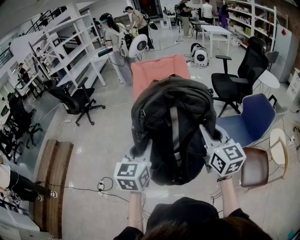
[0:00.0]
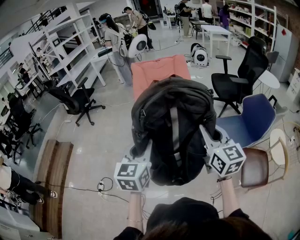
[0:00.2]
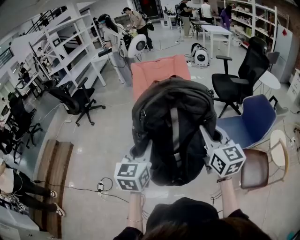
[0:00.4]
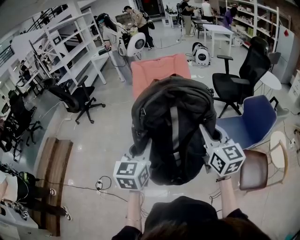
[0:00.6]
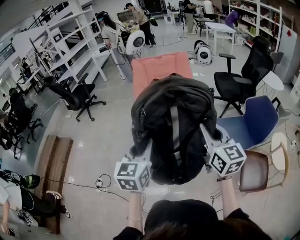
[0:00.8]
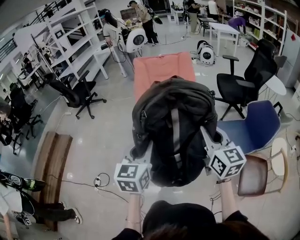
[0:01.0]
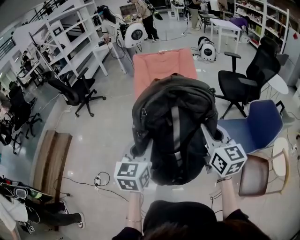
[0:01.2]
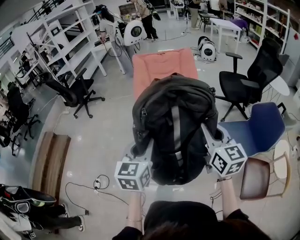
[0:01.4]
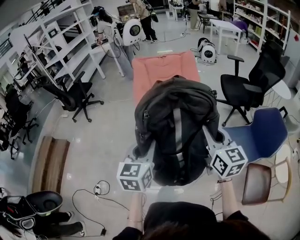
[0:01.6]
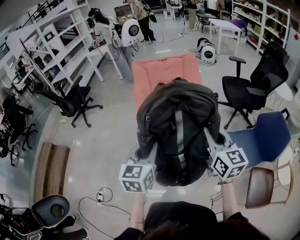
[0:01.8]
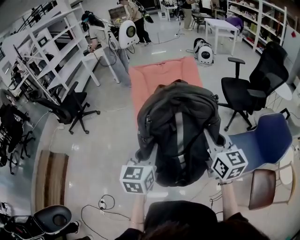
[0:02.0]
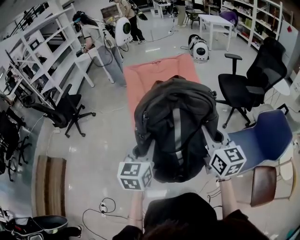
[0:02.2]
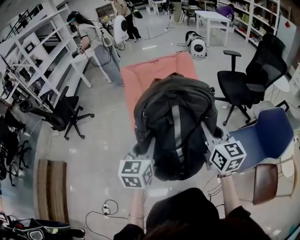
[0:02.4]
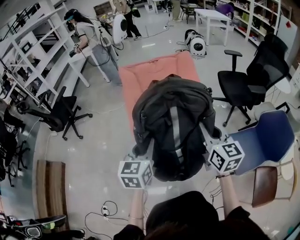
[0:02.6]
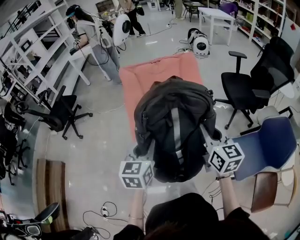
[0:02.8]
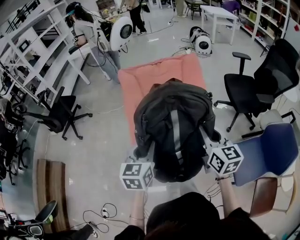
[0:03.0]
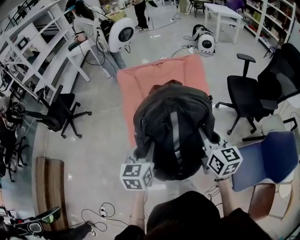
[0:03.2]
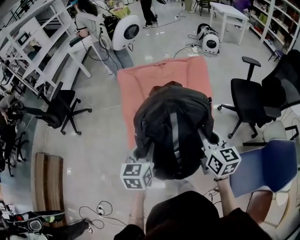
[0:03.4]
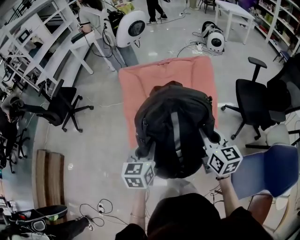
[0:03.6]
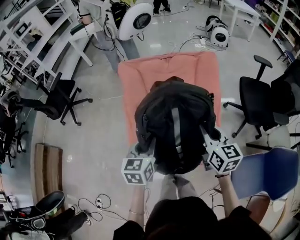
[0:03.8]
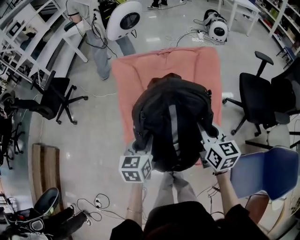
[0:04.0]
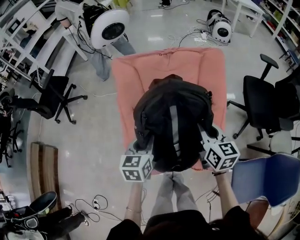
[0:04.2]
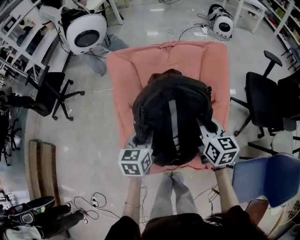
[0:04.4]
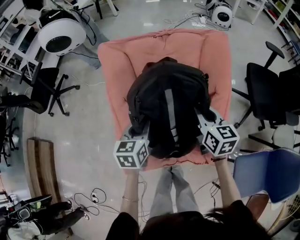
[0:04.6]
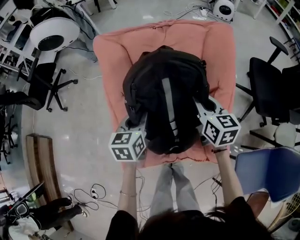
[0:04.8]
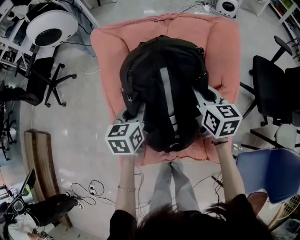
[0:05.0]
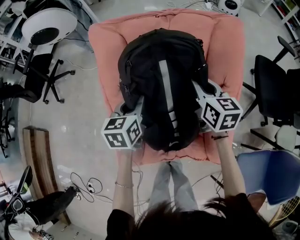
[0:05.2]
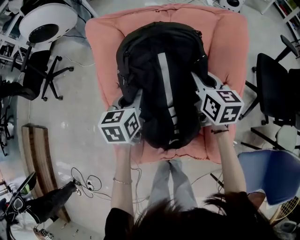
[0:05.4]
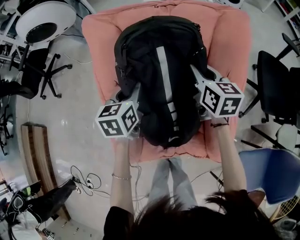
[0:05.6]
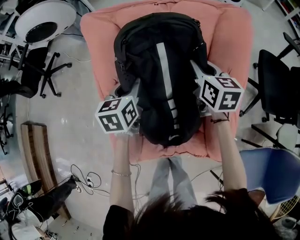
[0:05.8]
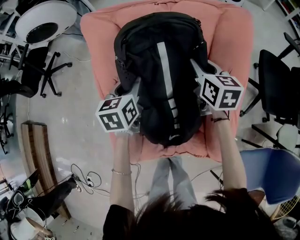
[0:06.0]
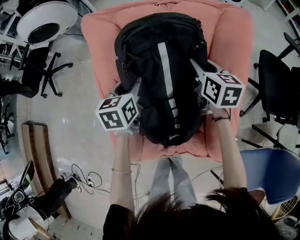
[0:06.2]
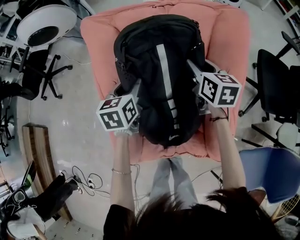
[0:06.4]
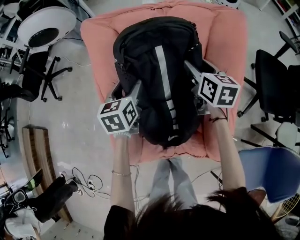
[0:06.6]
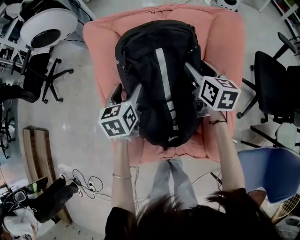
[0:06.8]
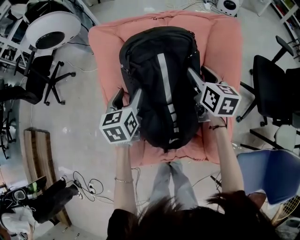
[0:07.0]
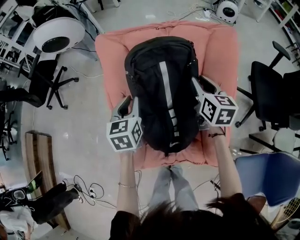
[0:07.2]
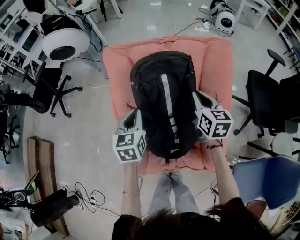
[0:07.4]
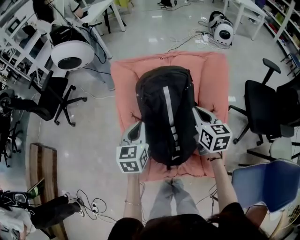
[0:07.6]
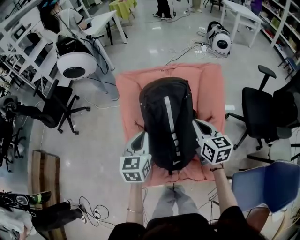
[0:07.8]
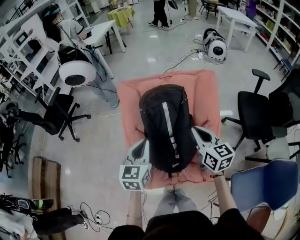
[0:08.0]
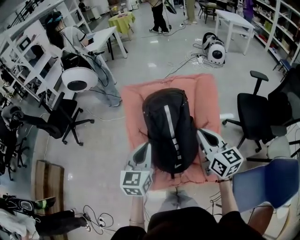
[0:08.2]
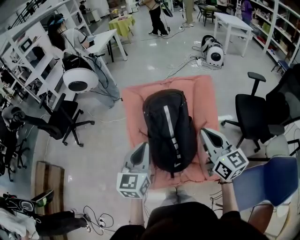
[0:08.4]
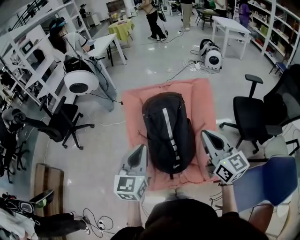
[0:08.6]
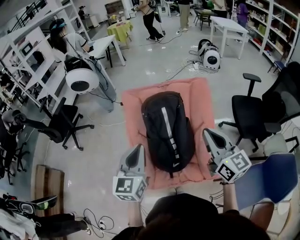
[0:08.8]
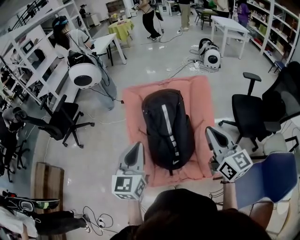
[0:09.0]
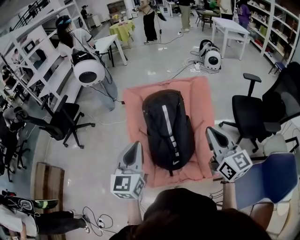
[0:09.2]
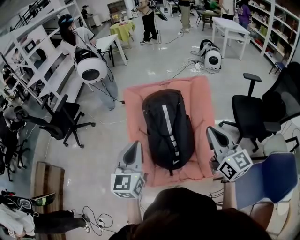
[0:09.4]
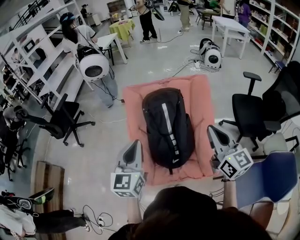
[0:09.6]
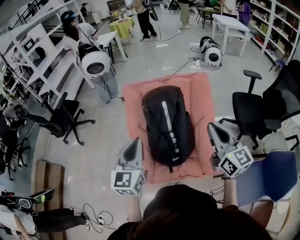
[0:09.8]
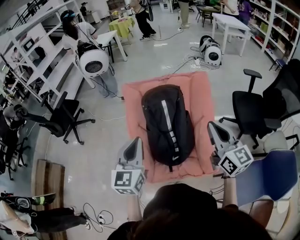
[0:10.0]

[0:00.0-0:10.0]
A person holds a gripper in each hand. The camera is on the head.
0:00.0 to 0:01.4: Both grippers travel together forward, roughly 15 cm.
0:01.4 to 0:02.8: Both grippers travel together forward, some 35 cm.
0:02.8 to 0:04.2: Both grippers move forward and downward, some 35 cm.
0:04.2 to 0:05.8: Both grippers move forward and downward, approximately 25 cm.
0:05.8 to 0:07.2: The right gripper changes place by roughly 5 cm, and opens, then closes again. The left gripper shifts about 5 cm upward, and opens, then closes once more.
0:07.2 to 0:08.6: Both grippers travel together upward and backward, approximately 35 cm. The left gripper rotates about 30 degrees. Meanwhile the right gripper turns by some 30 degrees, and closes its fingers.
0:08.6 to 0:10.0: There are only small adjustments of the grippers.

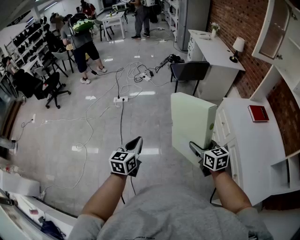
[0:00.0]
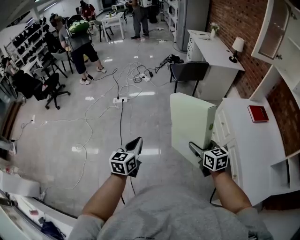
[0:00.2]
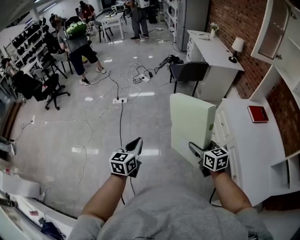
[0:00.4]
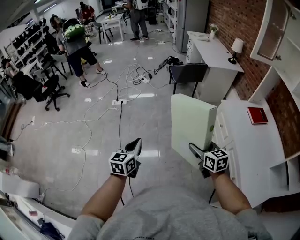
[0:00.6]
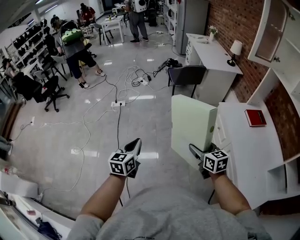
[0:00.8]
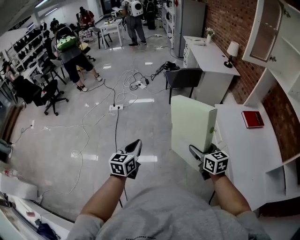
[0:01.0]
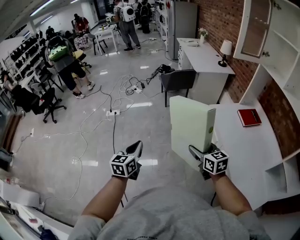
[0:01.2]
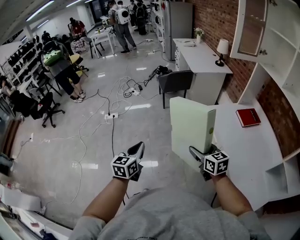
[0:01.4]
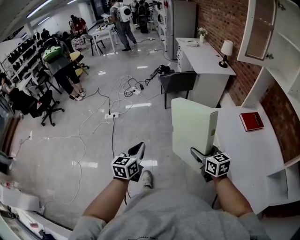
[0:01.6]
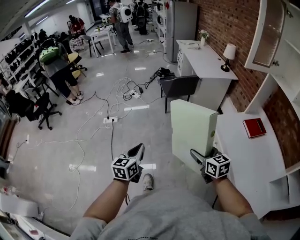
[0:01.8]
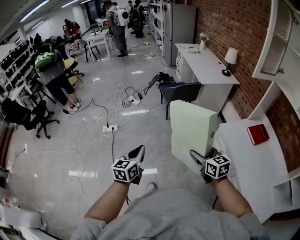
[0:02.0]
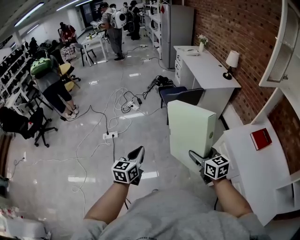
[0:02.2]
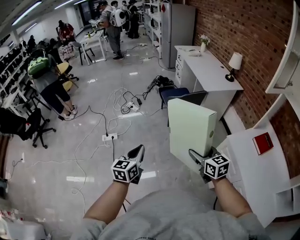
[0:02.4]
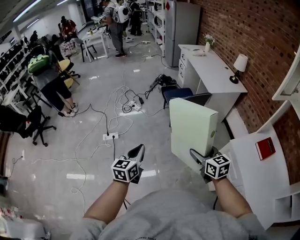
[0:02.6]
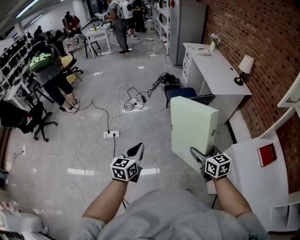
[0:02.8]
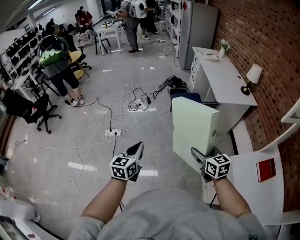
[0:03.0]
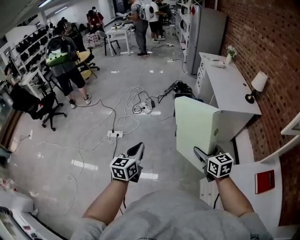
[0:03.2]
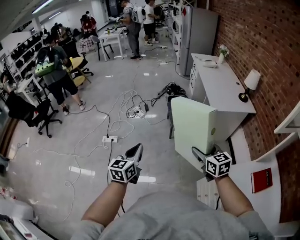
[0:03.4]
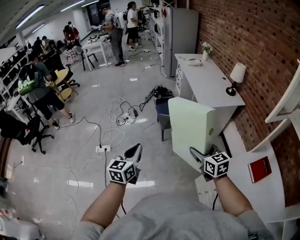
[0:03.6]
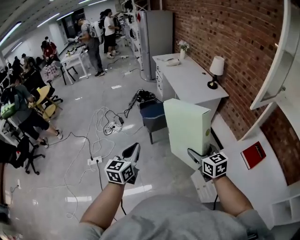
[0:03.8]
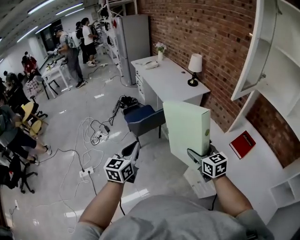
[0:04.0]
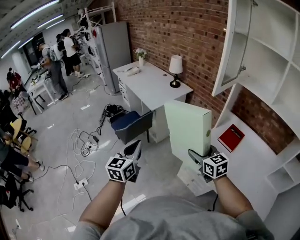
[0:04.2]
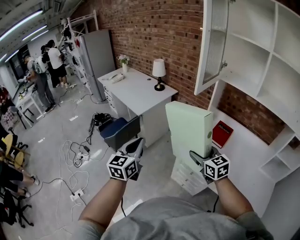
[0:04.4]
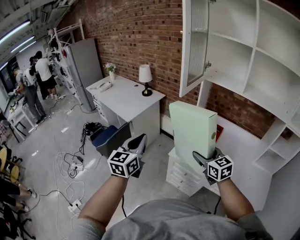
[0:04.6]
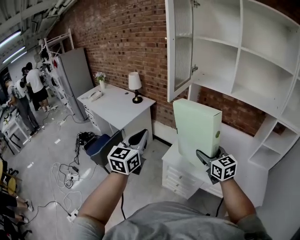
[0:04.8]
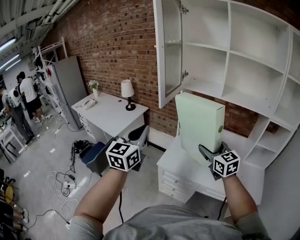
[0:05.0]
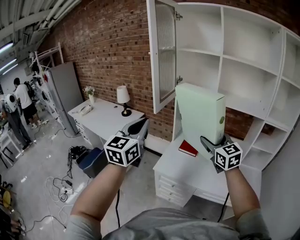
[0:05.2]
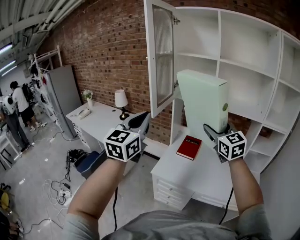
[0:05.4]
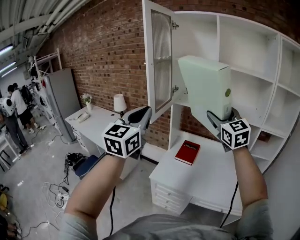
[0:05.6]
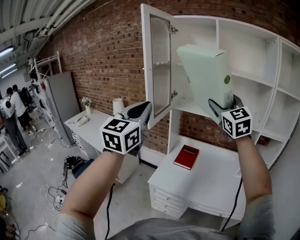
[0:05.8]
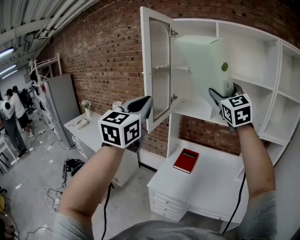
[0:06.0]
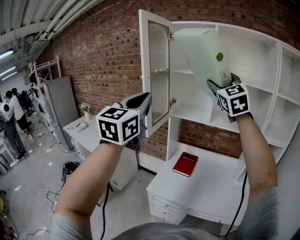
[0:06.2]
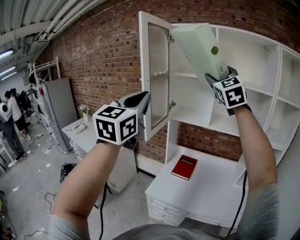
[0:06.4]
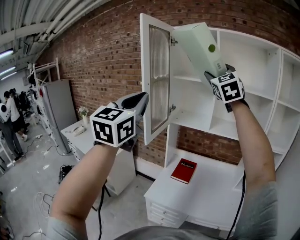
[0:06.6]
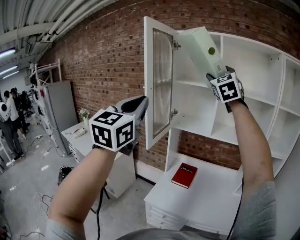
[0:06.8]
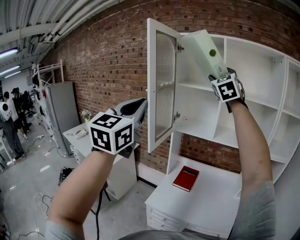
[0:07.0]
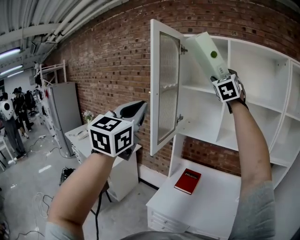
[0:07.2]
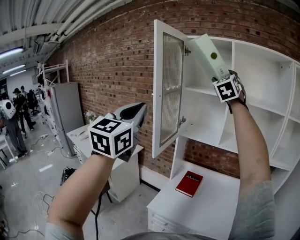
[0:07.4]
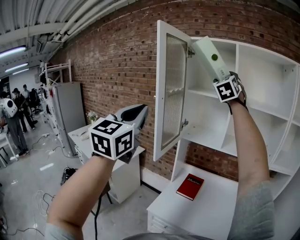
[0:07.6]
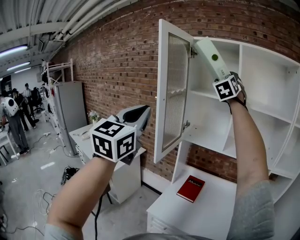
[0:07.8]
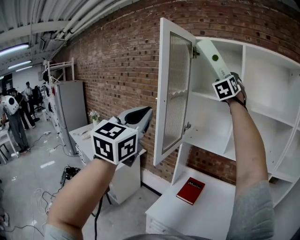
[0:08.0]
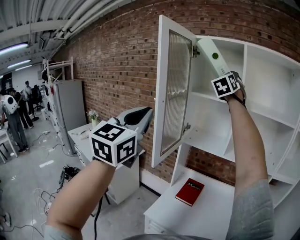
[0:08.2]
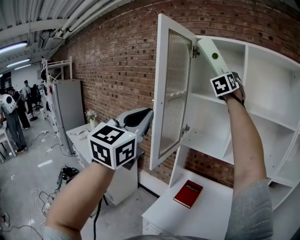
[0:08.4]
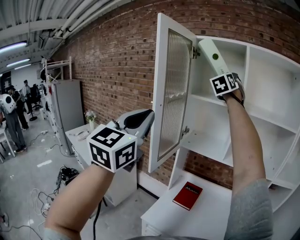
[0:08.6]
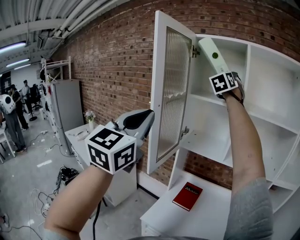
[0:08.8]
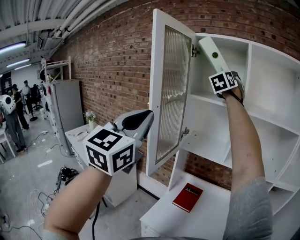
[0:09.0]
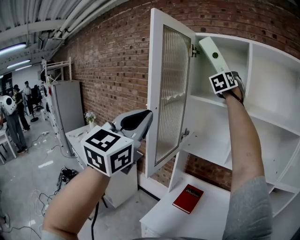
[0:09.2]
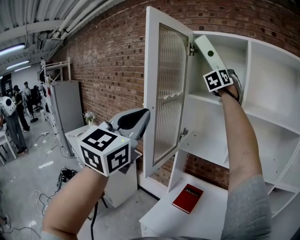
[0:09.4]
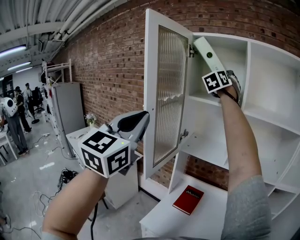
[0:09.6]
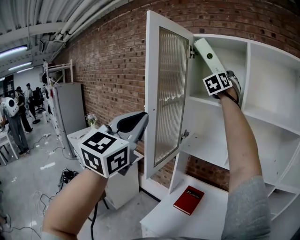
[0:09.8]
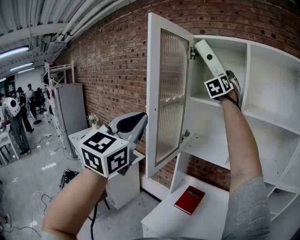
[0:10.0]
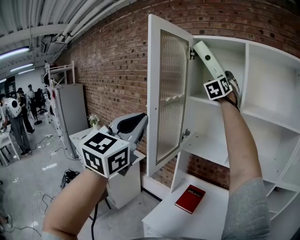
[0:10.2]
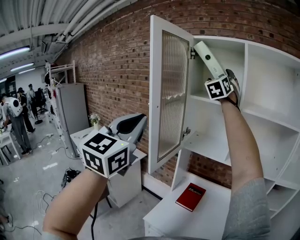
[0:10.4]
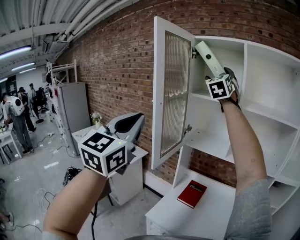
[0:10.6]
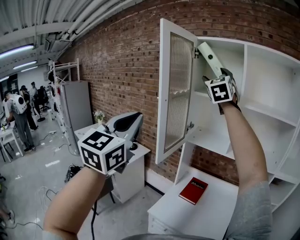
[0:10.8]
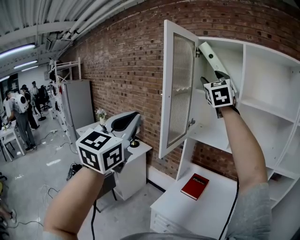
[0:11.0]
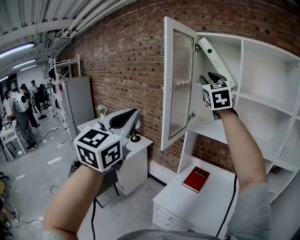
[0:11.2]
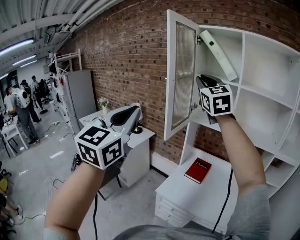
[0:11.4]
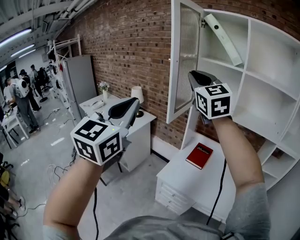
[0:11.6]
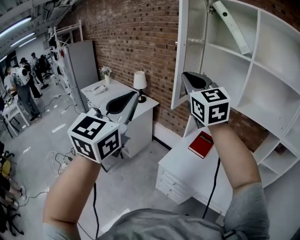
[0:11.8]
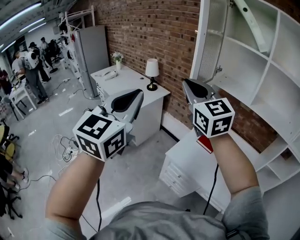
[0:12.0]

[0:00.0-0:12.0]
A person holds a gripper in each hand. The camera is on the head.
0:00.0 to 0:01.6: Both grippers travel together to the right and forward, some 15 cm.
0:01.6 to 0:03.0: The two grippers go about 40 cm forward.
0:03.0 to 0:04.4: The left gripper moves some 40 cm, and swivels approximately 40 degrees. The right gripper changes place by approximately 35 cm, and rotates roughly 40 degrees.
0:04.4 to 0:06.0: Both grippers move upward, roughly 40 cm. The right gripper changes its angle by approximately 60 degrees. The left gripper swivels approximately 30 degrees.
0:06.0 to 0:07.6: The left gripper moves to the left and upward, about 10 cm. Meanwhile the right gripper goes some 25 cm forward and upward, and rotates about 20 degrees.
0:07.6 to 0:09.0: The left gripper goes some 5 cm forward, while the right gripper shifts about 15 cm forward.
0:09.0 to 0:10.4: There are only small adjustments of the grippers.
0:10.4 to 0:12.0: The right gripper changes place by approximately 50 cm, turns by roughly 60 degrees, and closes its fingers; the left gripper ends up approximately 25 cm from where it was.

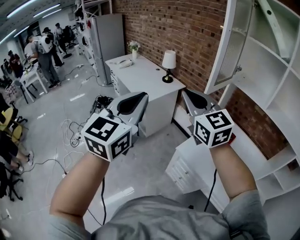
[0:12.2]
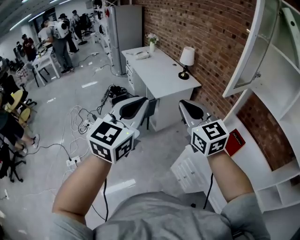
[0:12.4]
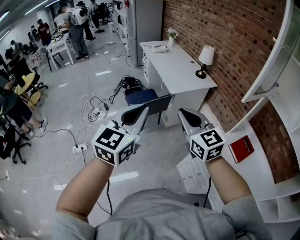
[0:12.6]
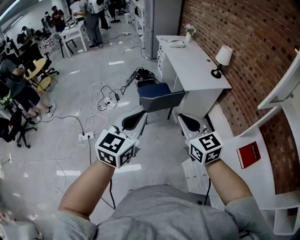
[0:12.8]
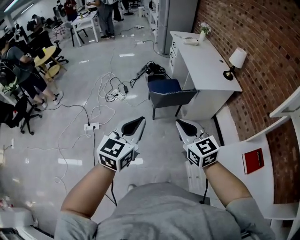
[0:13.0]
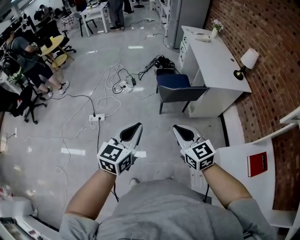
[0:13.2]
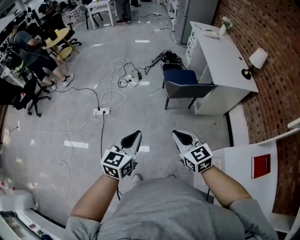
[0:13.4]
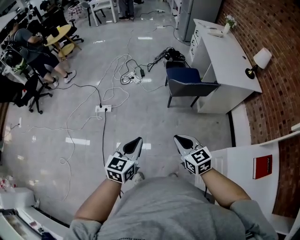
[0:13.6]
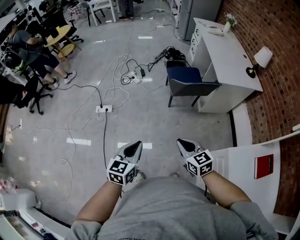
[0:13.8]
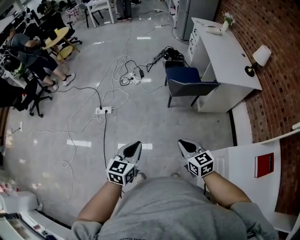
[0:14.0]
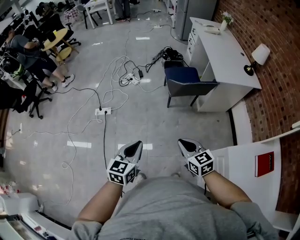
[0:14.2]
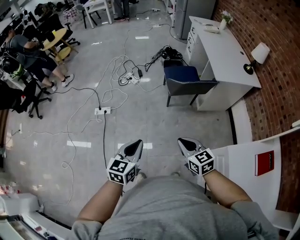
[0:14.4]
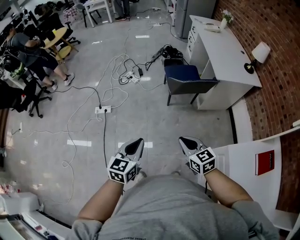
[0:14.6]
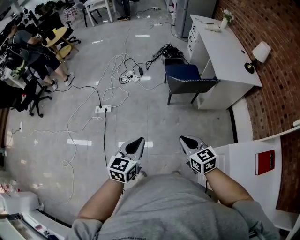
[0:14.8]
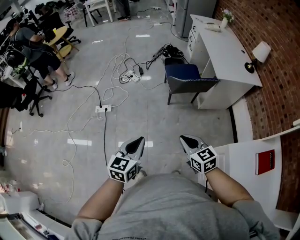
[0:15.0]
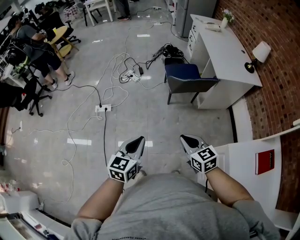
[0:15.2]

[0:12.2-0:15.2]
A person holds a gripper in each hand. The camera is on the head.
0:12.2 to 0:13.8: Both grippers travel together downward, some 40 cm. The right gripper tilts its fingers about 30 degrees downward, while the left gripper turns by about 50 degrees.
0:13.8 to 0:15.2: The grippers stay close to where they were, moving slightly.
